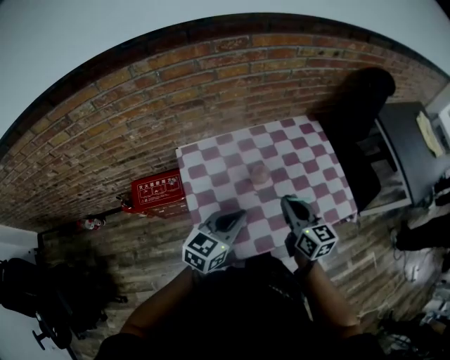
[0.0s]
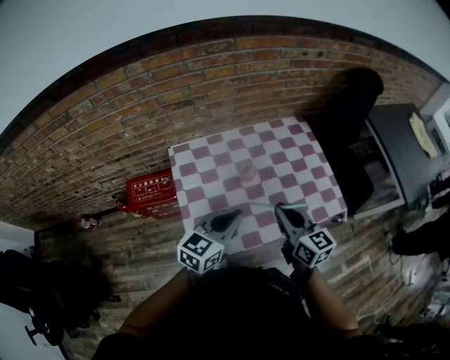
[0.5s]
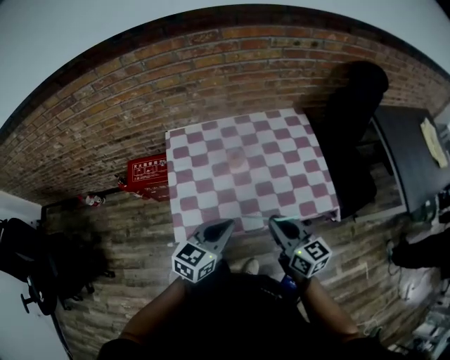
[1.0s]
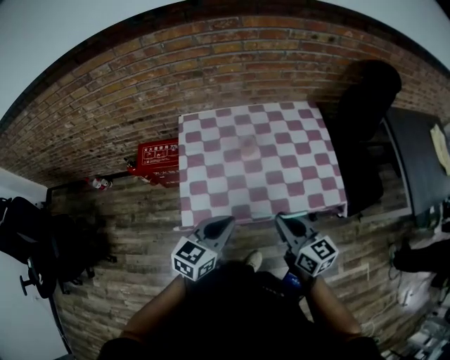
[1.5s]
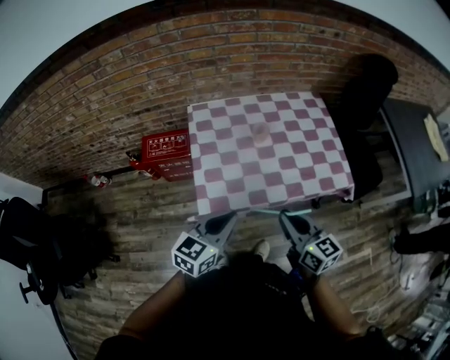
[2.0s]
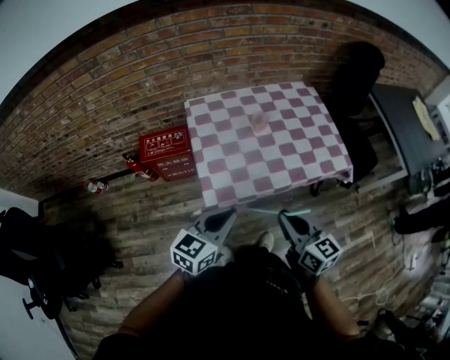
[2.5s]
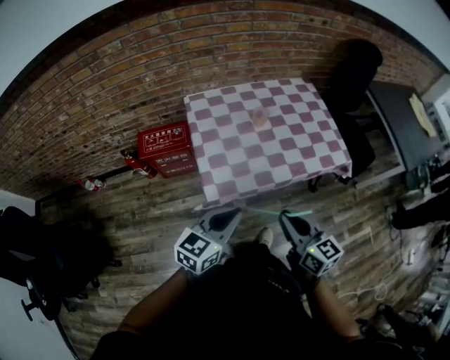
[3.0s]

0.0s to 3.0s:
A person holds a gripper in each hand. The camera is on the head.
0.0s to 1.5s: Both grippers move backward and to the right, some 20 cm. The right gripper turns by approximately 20 degrees.
1.5s to 3.0s: The right gripper goes about 20 cm backward and to the left. The left gripper goes approximately 15 cm to the left and backward.

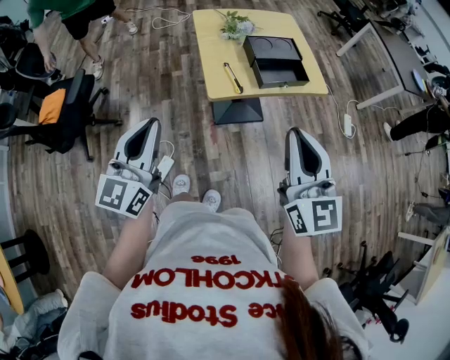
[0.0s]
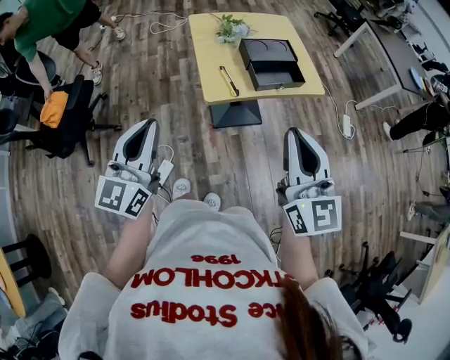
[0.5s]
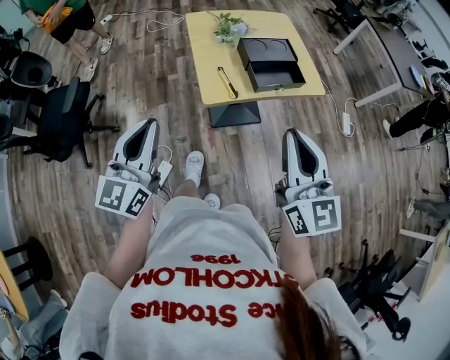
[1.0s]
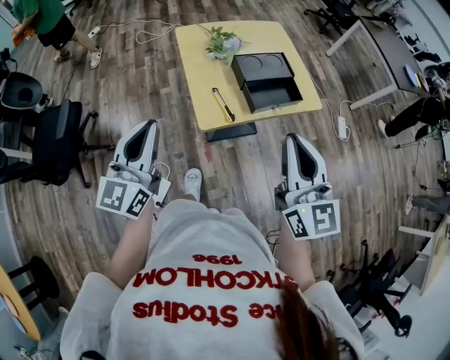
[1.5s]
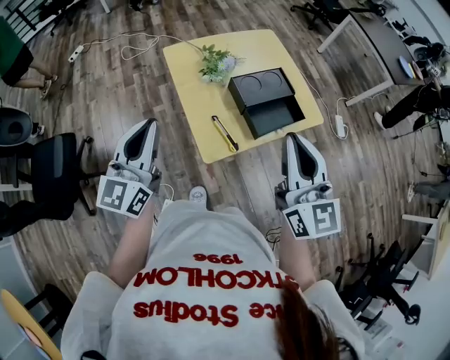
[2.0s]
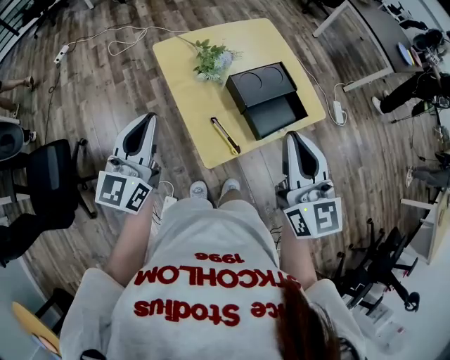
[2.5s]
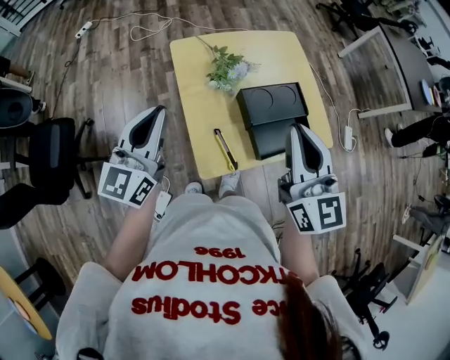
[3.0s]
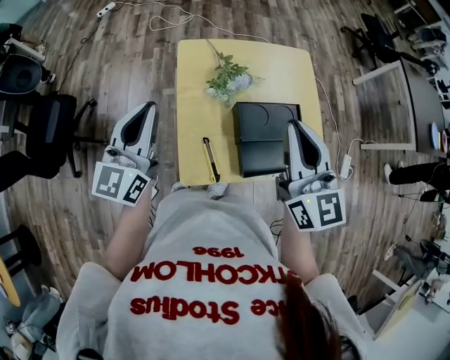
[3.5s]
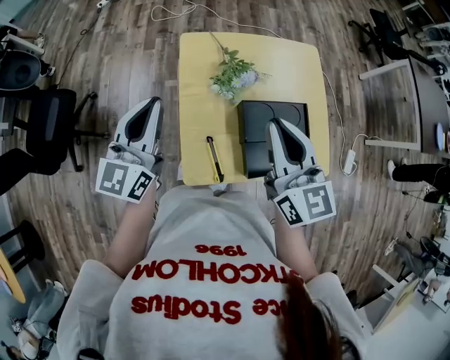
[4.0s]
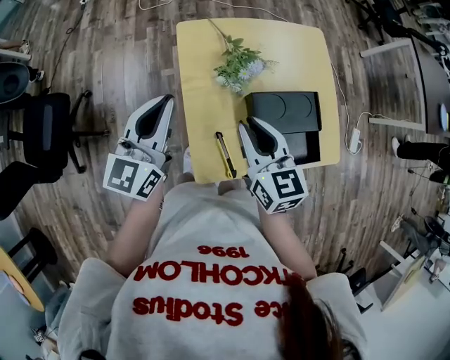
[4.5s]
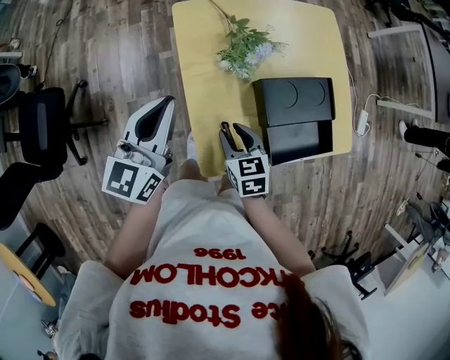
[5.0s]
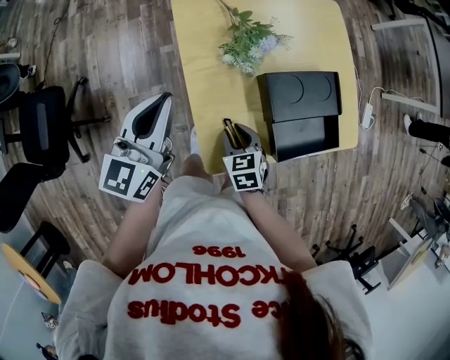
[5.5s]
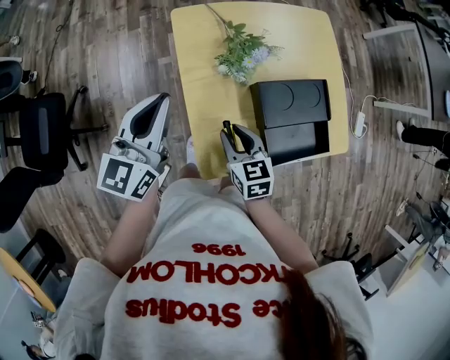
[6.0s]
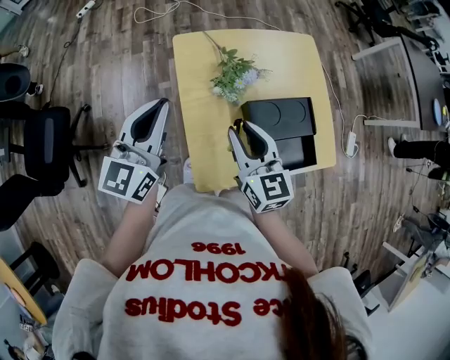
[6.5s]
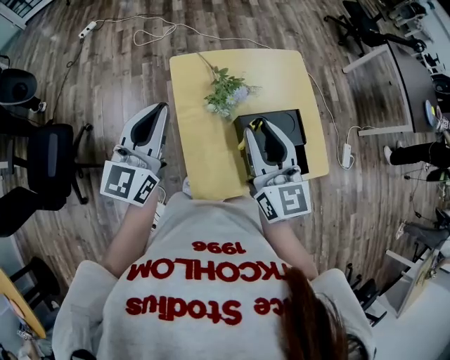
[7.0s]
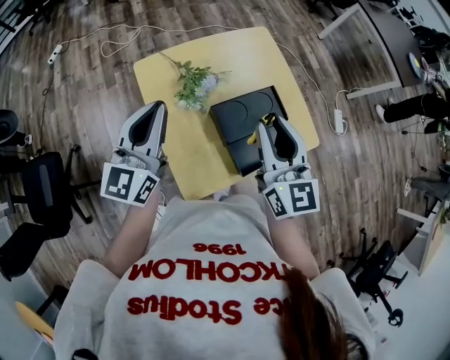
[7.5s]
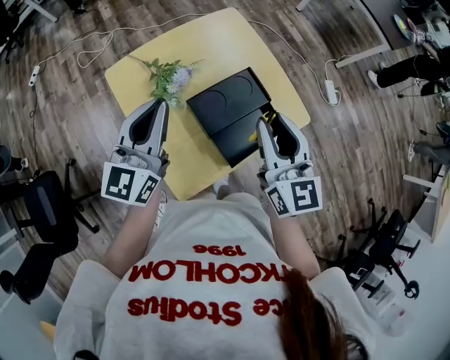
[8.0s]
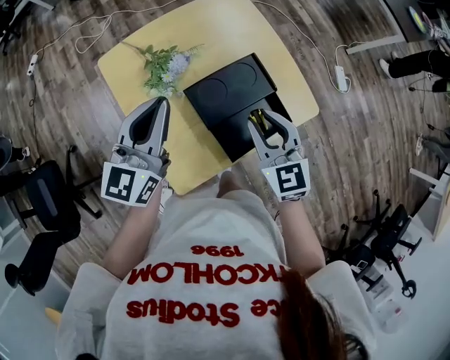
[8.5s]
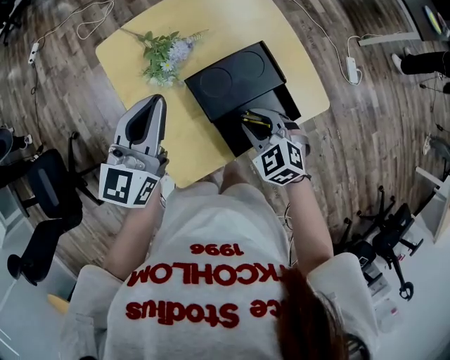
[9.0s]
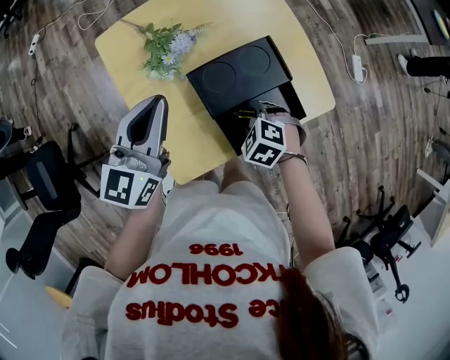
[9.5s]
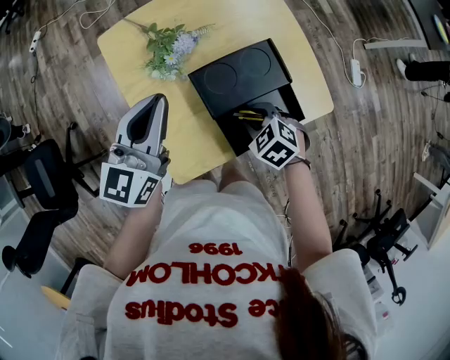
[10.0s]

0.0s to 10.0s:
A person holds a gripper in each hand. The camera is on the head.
0.0s to 2.0s: The grippers both shift forward by roughly 25 cm.
2.0s to 4.0s: Both grippers move forward, some 20 cm. The right gripper rotates some 30 degrees.
4.0s to 6.0s: The right gripper goes roughly 25 cm downward and to the left, angles its fingers downward, by roughly 30 degrees, and opens its fingers; the left gripper heads downward, covering about 5 cm.
6.0s to 8.0s: The right gripper travels upward and to the right by about 30 cm, and swivels some 40 degrees. The left gripper heads to the right, covering roughly 15 cm.
8.0s to 10.0s: The left gripper heads downward, covering approximately 5 cm, while the right gripper goes approximately 25 cm downward, and tips its fingers downward by approximately 50 degrees.

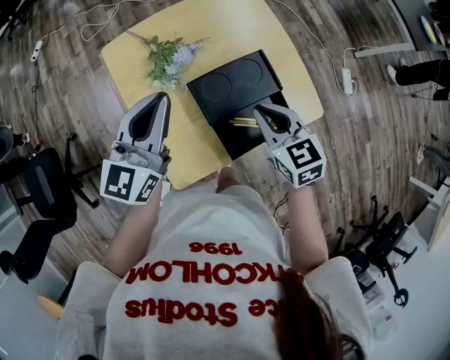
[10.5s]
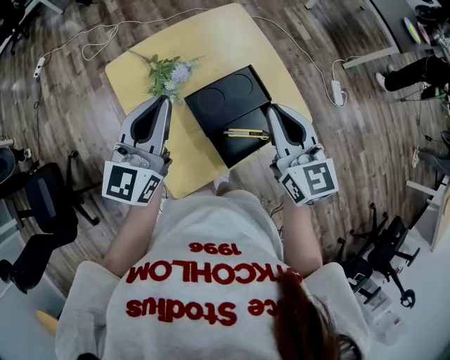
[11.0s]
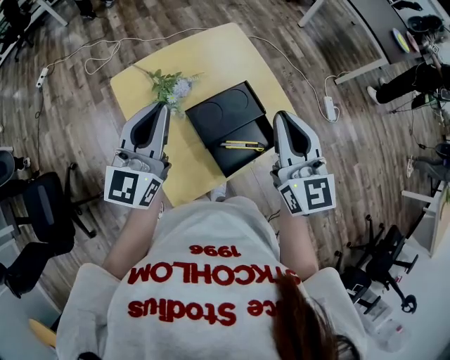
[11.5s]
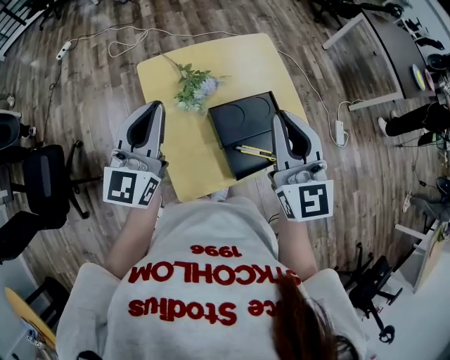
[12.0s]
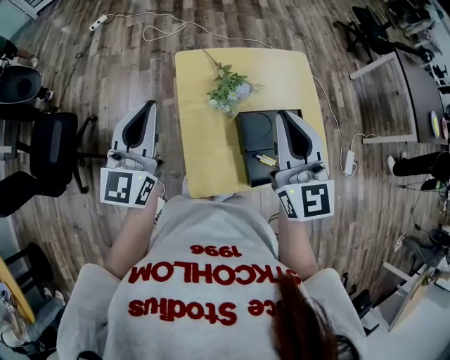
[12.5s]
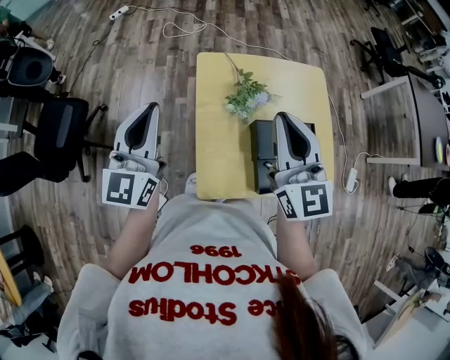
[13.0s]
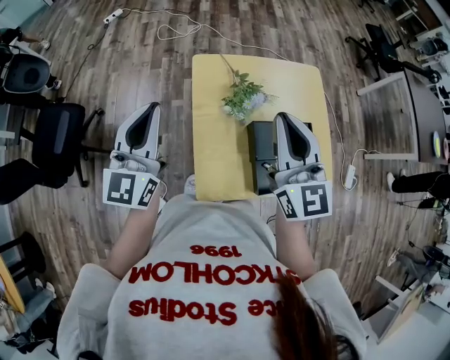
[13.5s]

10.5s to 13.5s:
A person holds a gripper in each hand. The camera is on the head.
10.5s to 12.0s: The left gripper is displaced upward and to the left by about 10 cm, while the right gripper is displaced upward by approximately 20 cm, and tilts its fingers some 30 degrees upward.
12.0s to 13.5s: Both grippers travel together to the left, approximately 10 cm.

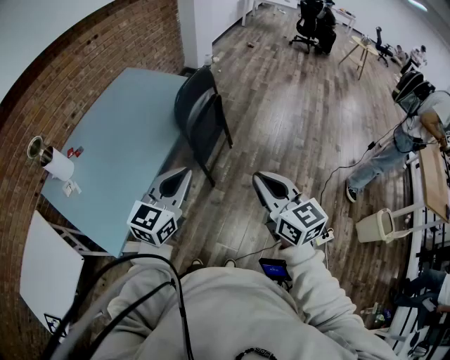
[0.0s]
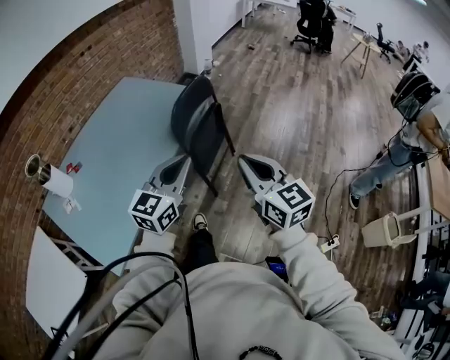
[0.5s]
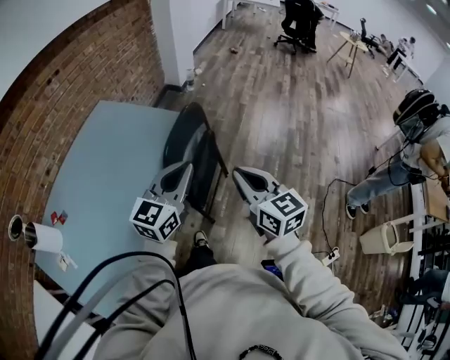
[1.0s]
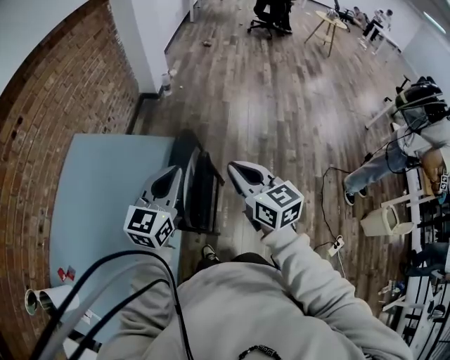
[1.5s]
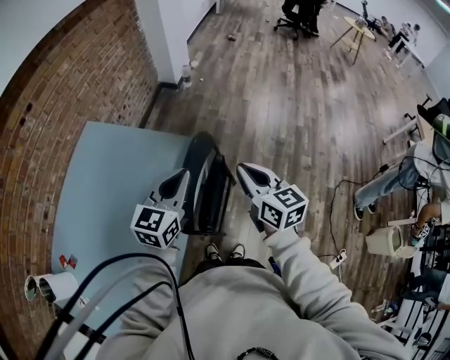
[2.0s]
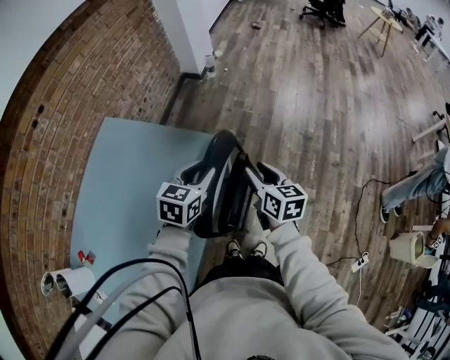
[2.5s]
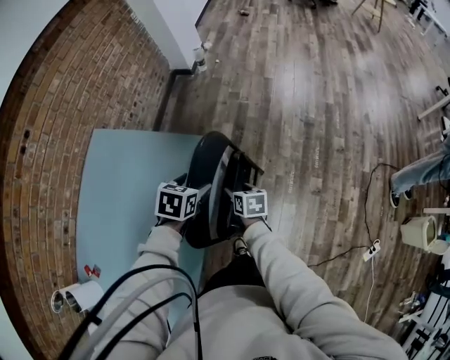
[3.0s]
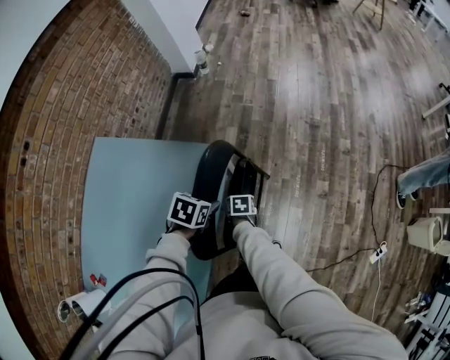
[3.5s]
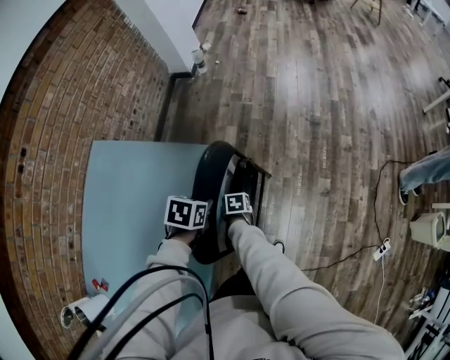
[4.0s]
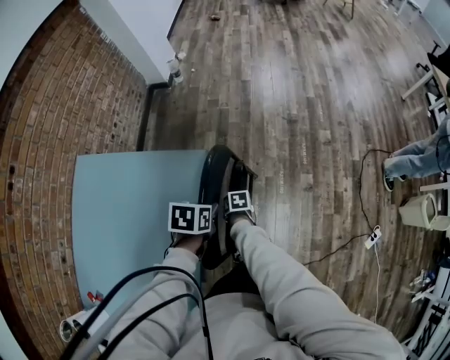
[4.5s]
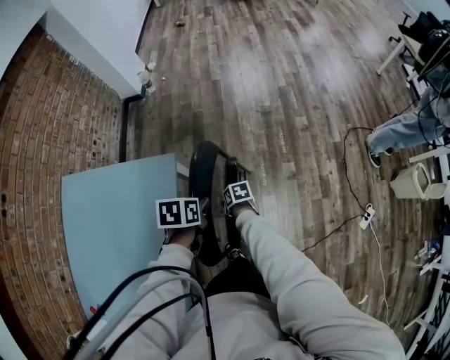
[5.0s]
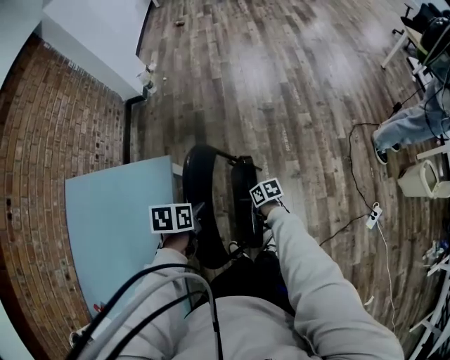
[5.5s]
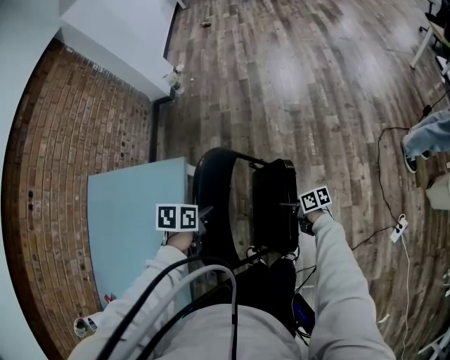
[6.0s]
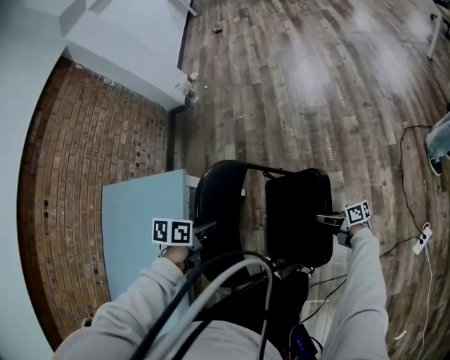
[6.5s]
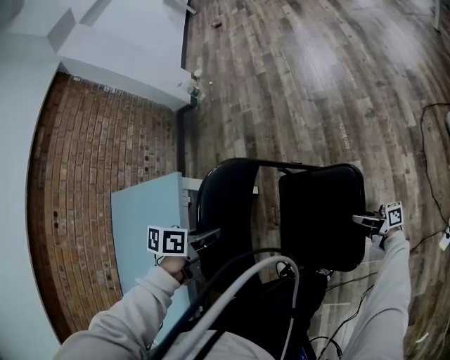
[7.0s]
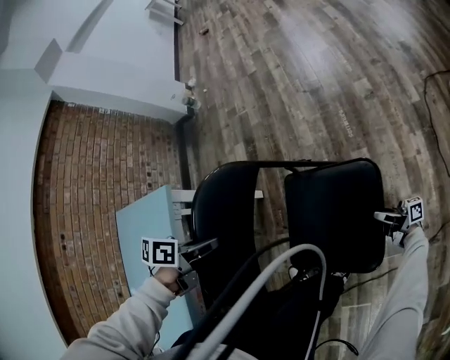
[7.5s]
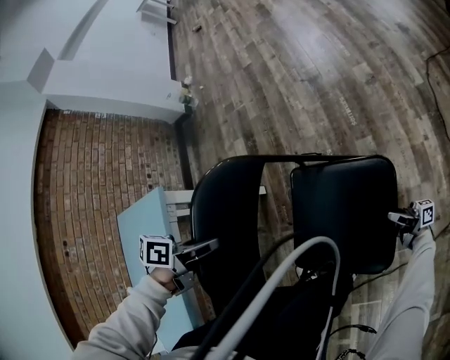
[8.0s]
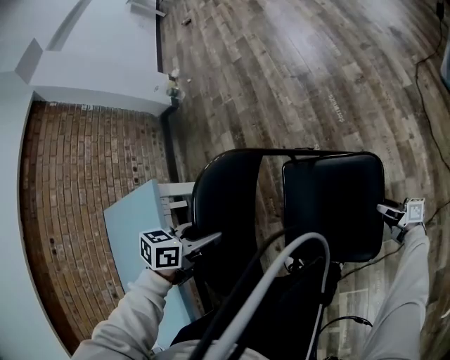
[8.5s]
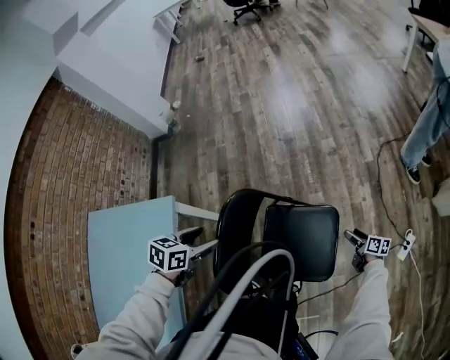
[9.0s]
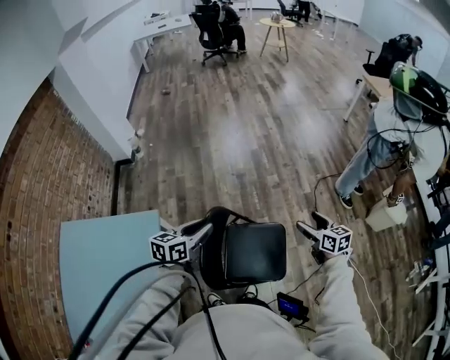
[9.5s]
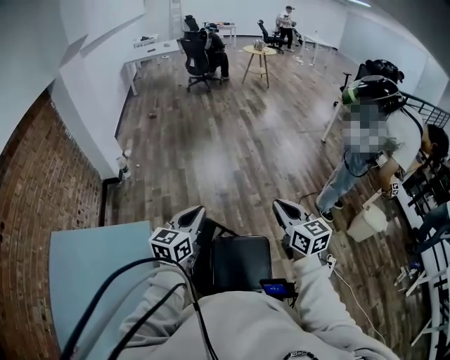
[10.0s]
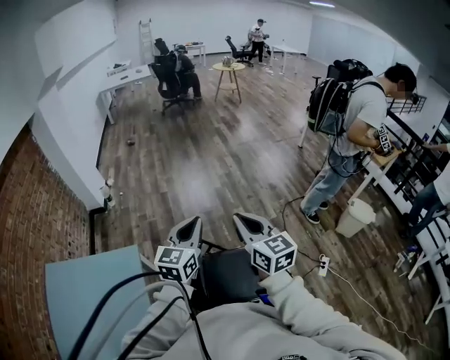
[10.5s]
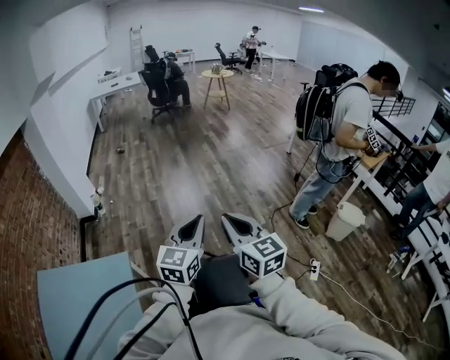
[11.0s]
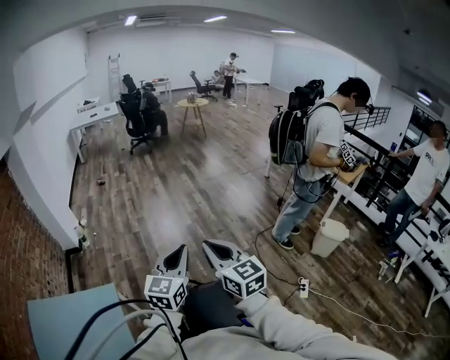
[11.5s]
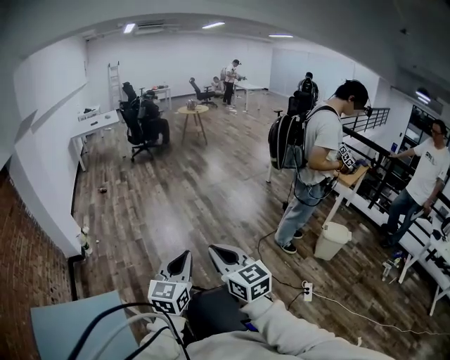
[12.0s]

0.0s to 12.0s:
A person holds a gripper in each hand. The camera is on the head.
0.0s to 2.0s: The two grippers travel together, forward, some 60 cm.
2.0s to 4.0s: The right gripper goes about 50 cm downward, points its fingers approximately 50 degrees further downward, and opens its fingers. Meanwhile the left gripper heads downward, covering some 25 cm, tips its fingers downward by about 50 degrees, and opens, then closes again.
4.0s to 6.0s: The left gripper moves roughly 20 cm. Meanwhile the right gripper shifts by some 35 cm, and points its fingers about 40 degrees further upward.
6.0s to 8.0s: The left gripper moves downward, about 15 cm. The right gripper changes place by roughly 40 cm, and points its fingers roughly 50 degrees further upward.
8.0s to 10.0s: The right gripper heads upward, covering some 80 cm, twists about 70 degrees counterclockwise, seen from behind, and closes its fingers. The left gripper travels upward by roughly 50 cm, tips its fingers upward by about 50 degrees, and opens, then closes again.
10.0s to 12.0s: The right gripper moves upward, about 10 cm; the left gripper is displaced to the right and upward by roughly 15 cm.
